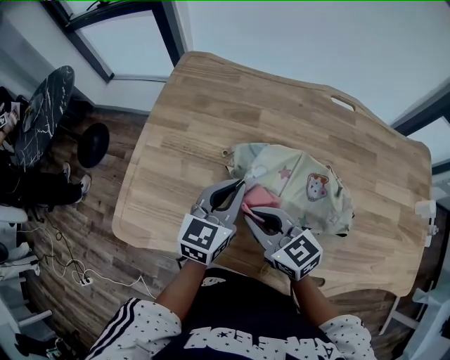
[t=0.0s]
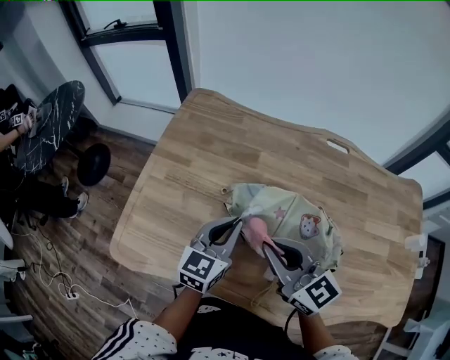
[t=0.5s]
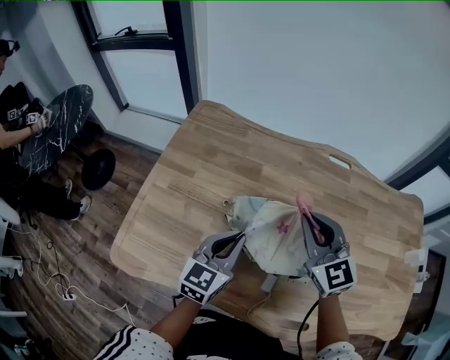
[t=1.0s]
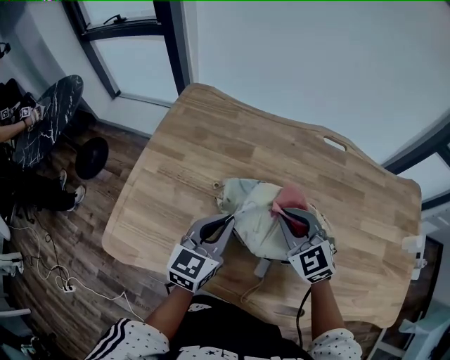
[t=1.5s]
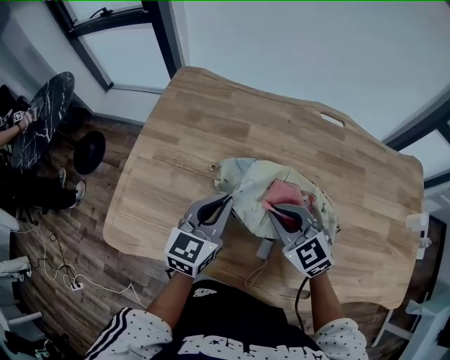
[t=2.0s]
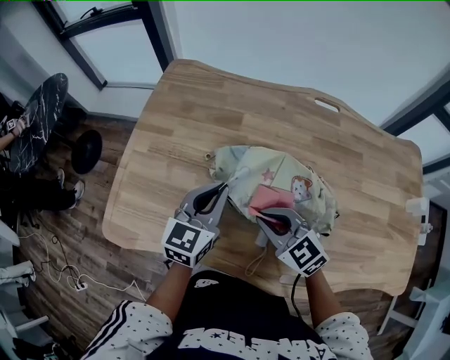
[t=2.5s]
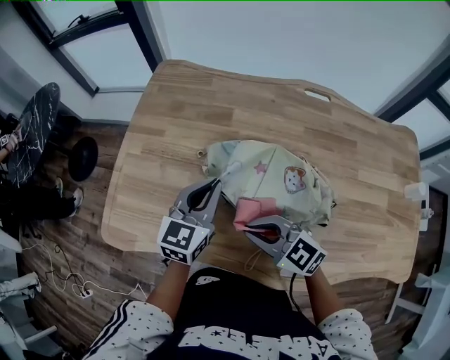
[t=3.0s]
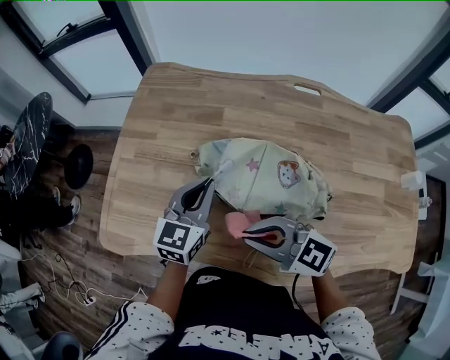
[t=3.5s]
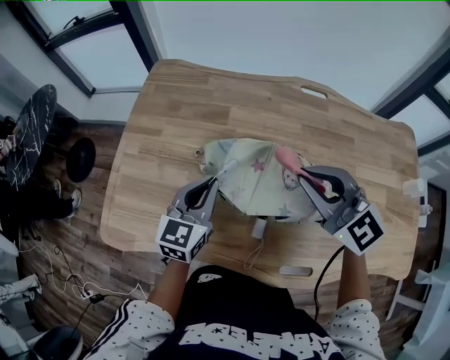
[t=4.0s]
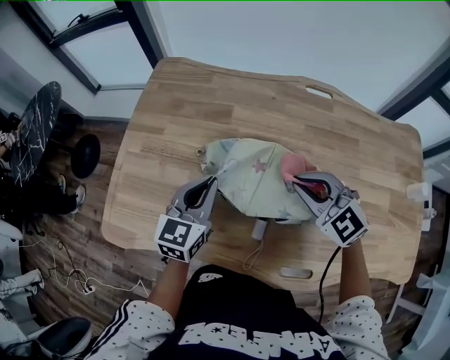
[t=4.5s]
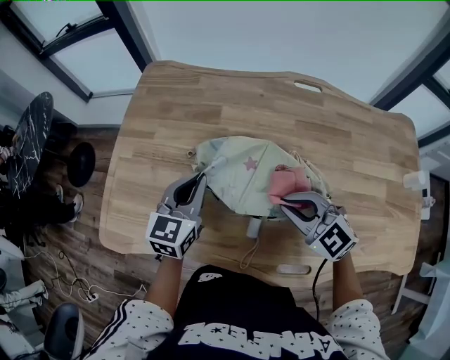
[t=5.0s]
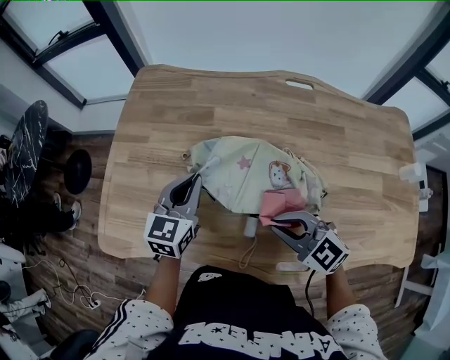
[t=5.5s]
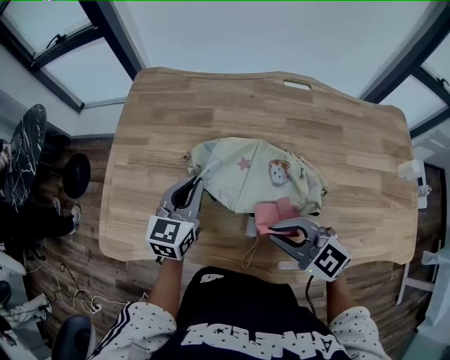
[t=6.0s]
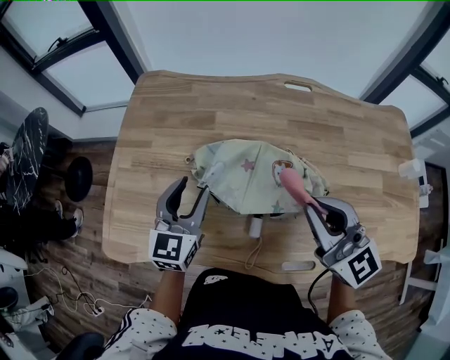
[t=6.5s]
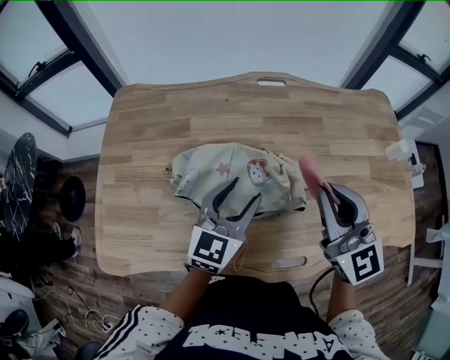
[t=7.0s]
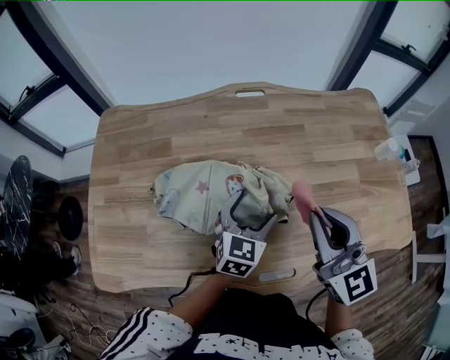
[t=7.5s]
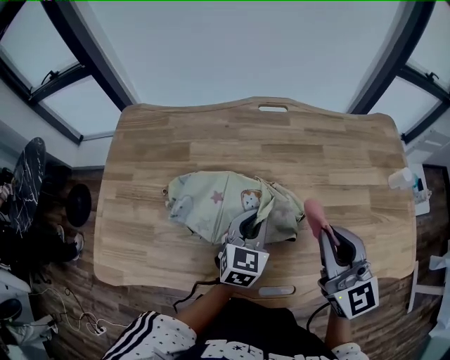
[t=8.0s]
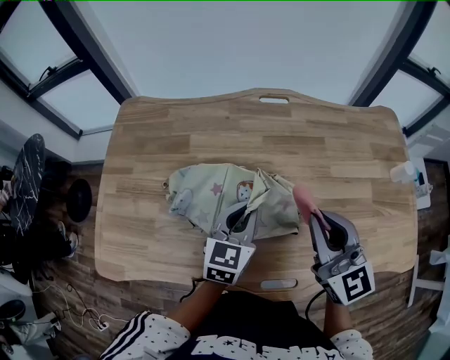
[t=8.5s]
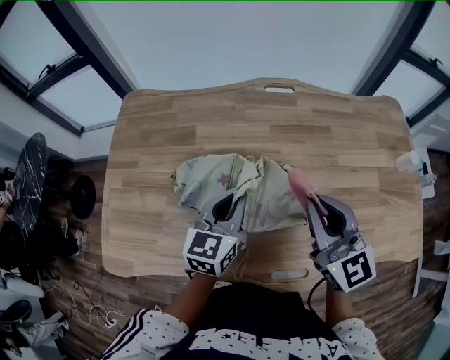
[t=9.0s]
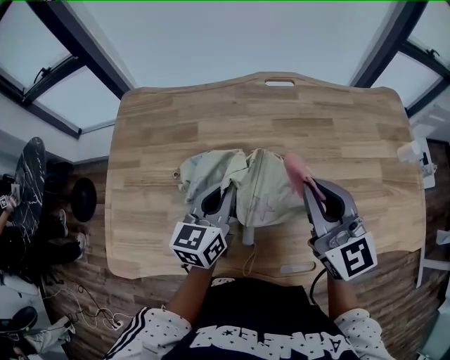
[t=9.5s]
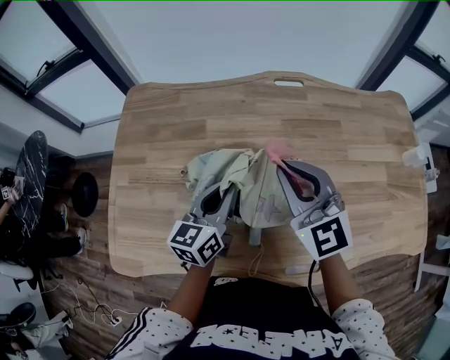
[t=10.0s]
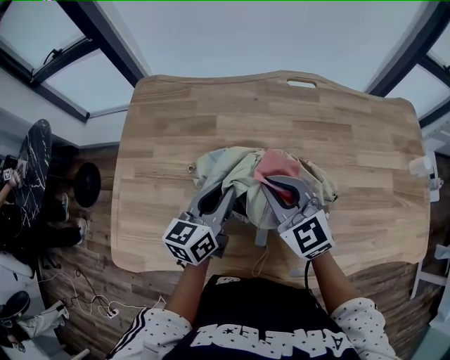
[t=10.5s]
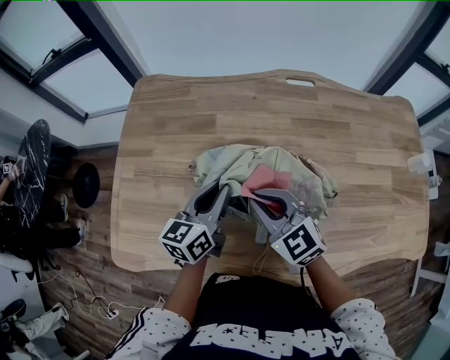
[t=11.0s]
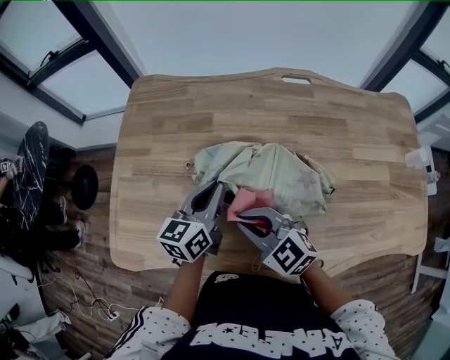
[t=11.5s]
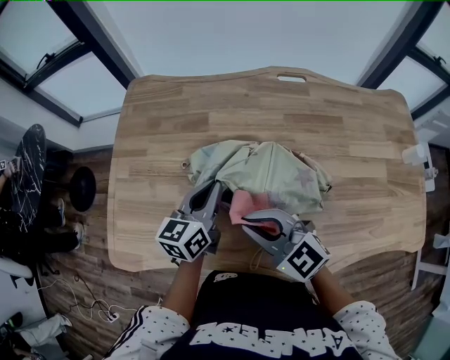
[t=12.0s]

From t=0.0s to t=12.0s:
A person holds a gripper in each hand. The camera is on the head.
From t=0.0s to t=2.0s: The right gripper is displaced to the right by approximately 10 cm, and rotates roughly 30 degrees.
From t=2.0s to t=4.0s: The right gripper goes about 15 cm upward and to the right.
From t=4.0s to t=6.0s: The right gripper shifts roughly 15 cm backward, downward and to the left.
From t=6.0s to t=8.0s: The right gripper shifts by some 20 cm, and swivels roughly 50 degrees. Meanwhile the left gripper ends up roughly 25 cm from where it was, and opens, then closes once more.
From t=8.0s to t=10.0s: The right gripper is displaced to the left and forward by approximately 20 cm, while the left gripper shifts roughly 15 cm to the left, and rotates approximately 30 degrees.
From t=10.0s to t=12.0s: The right gripper travels to the left, backward and downward by about 15 cm, and changes its angle by roughly 30 degrees.

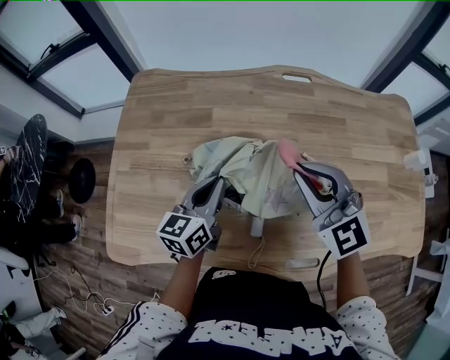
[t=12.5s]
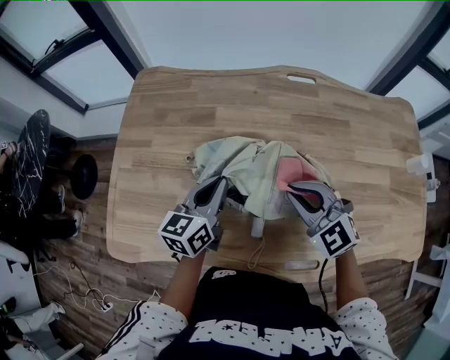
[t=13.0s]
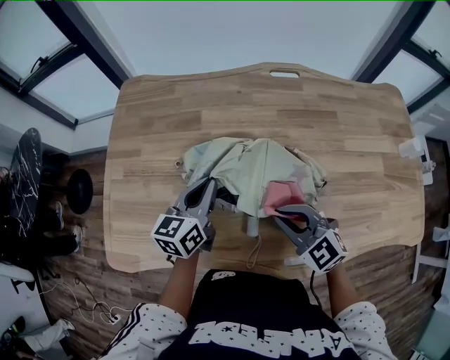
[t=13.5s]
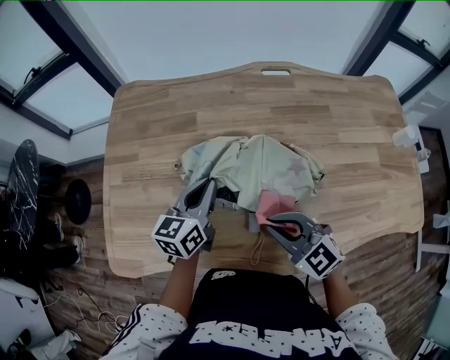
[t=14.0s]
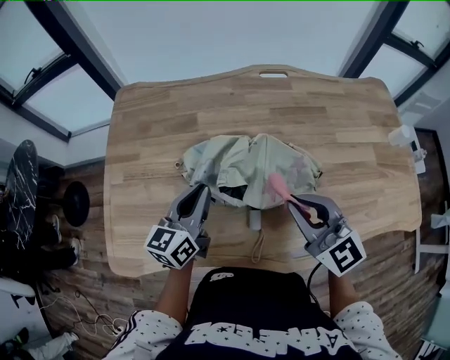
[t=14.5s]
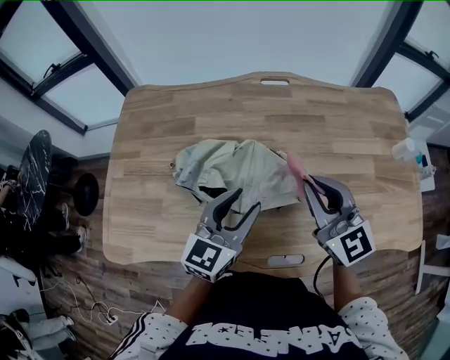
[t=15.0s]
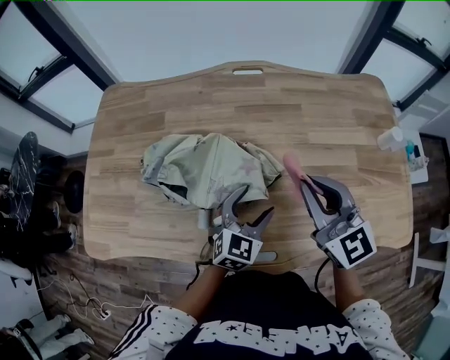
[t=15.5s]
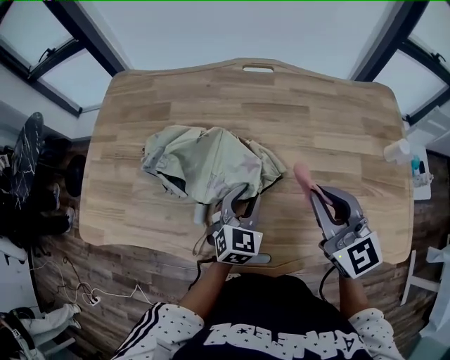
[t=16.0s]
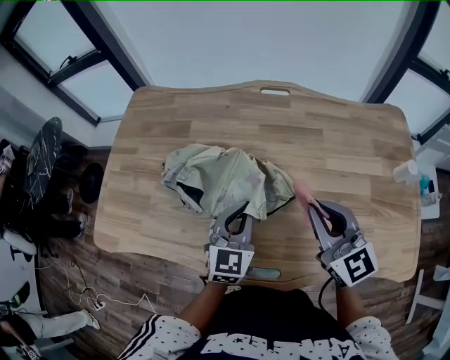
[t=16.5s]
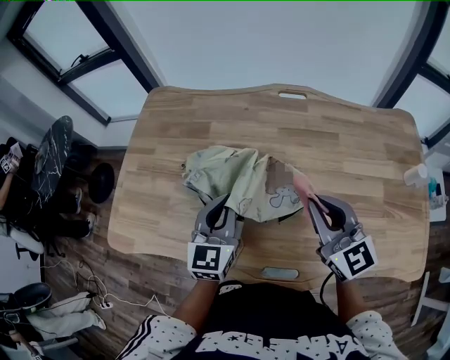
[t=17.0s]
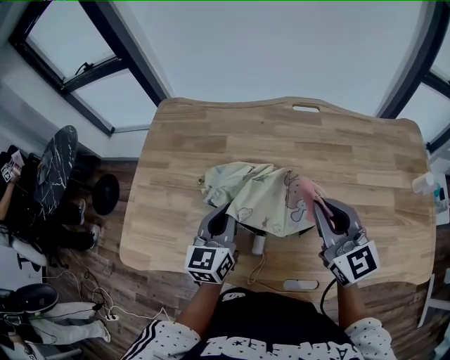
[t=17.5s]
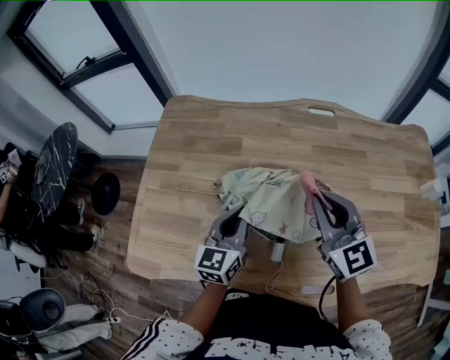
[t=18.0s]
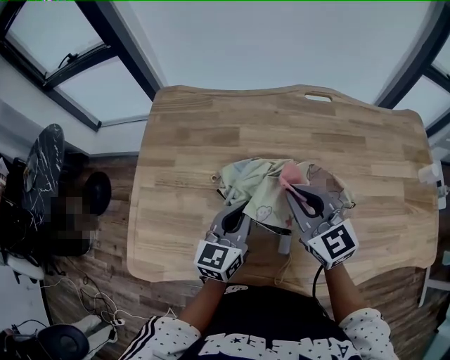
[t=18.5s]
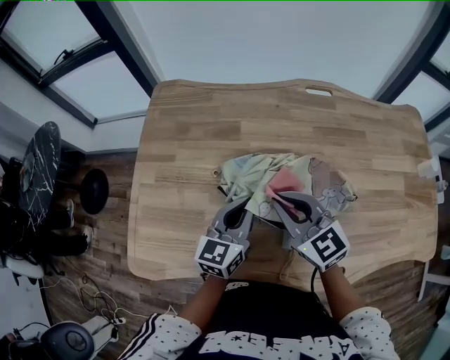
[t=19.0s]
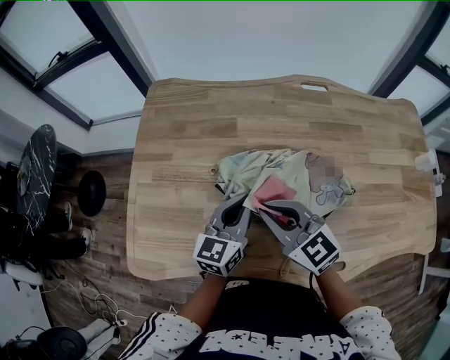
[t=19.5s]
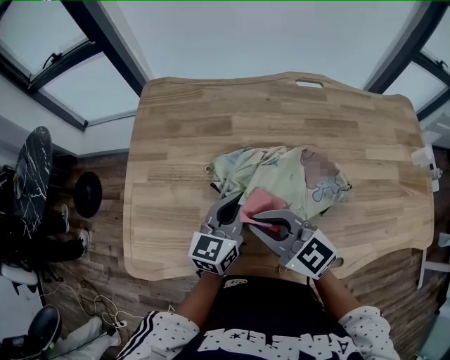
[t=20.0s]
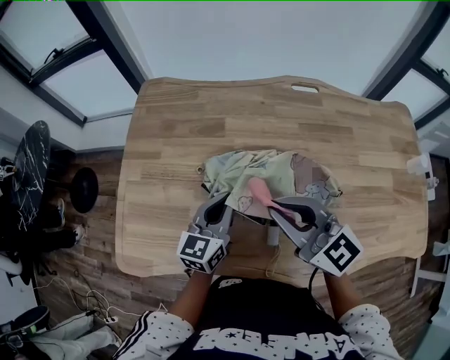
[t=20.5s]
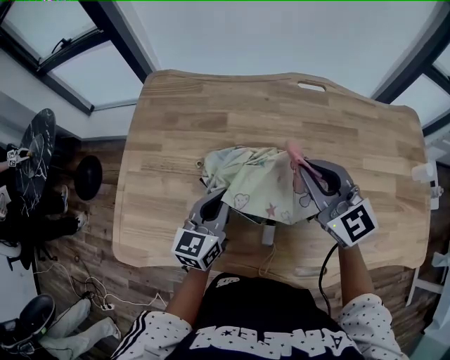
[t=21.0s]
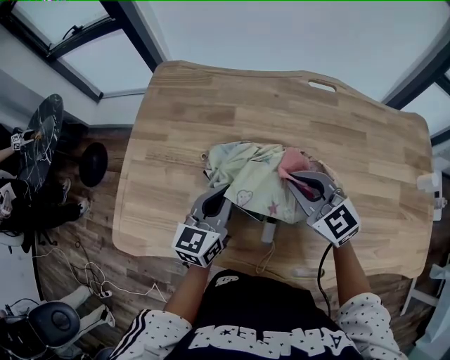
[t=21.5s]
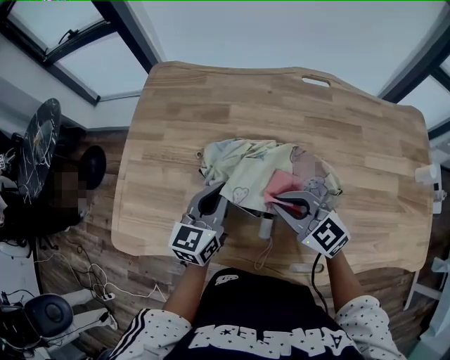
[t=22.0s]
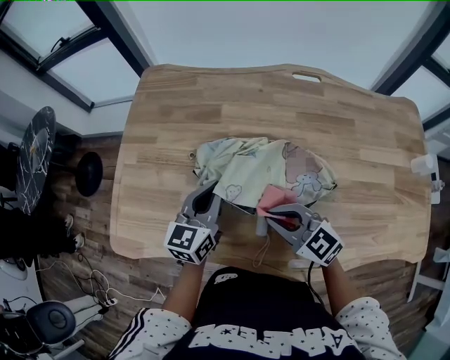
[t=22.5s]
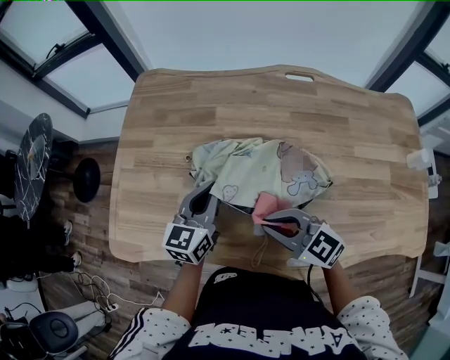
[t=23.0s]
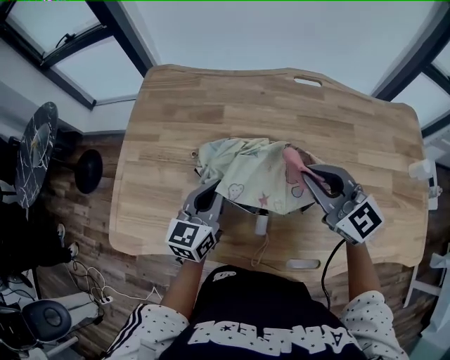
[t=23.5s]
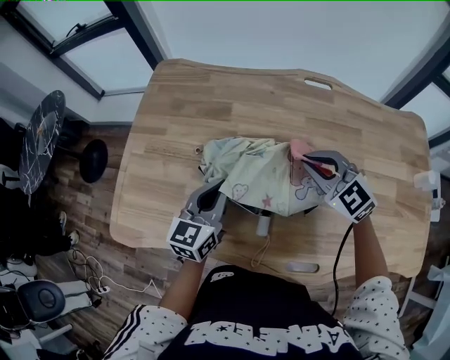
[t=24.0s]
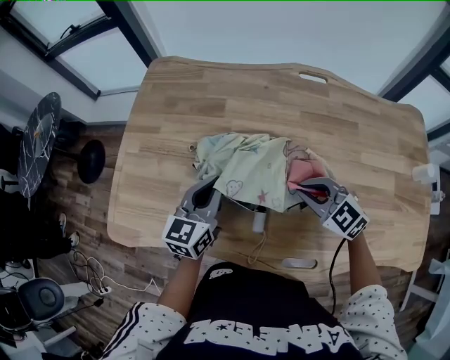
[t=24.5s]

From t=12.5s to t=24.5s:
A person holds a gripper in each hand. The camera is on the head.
From t=12.5s to t=14.5s: The right gripper shifts some 10 cm backward, goes downward and returns, roughly 15 cm each way, and turns by about 20 degrees.
From t=14.5s to t=16.5s: The two grippers go some 20 cm to the right. The left gripper swivels some 30 degrees, and opens, then closes once more.
From t=16.5s to t=18.5s: The left gripper goes approximately 20 cm to the left, and changes its angle by about 20 degrees, while the right gripper is displaced to the left and forward by approximately 25 cm.
From t=18.5s to t=20.5s: The right gripper is displaced backward by roughly 5 cm, and reaches some 10 cm to the left, then returns.
From t=20.5s to t=22.5s: The right gripper is displaced downward and backward by some 15 cm, and swivels approximately 20 degrees.
From t=22.5s to t=24.5s: The right gripper goes roughly 10 cm to the right, and goes upward and returns, roughly 10 cm each way.

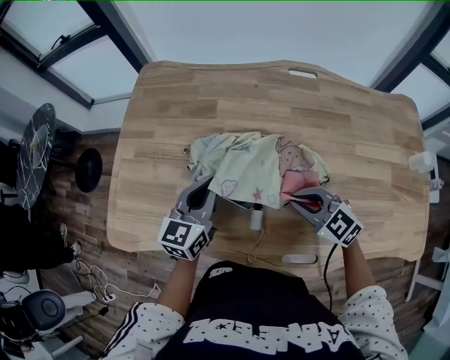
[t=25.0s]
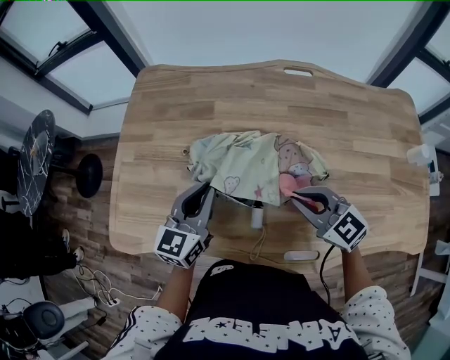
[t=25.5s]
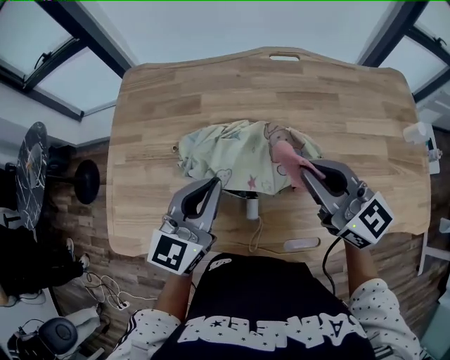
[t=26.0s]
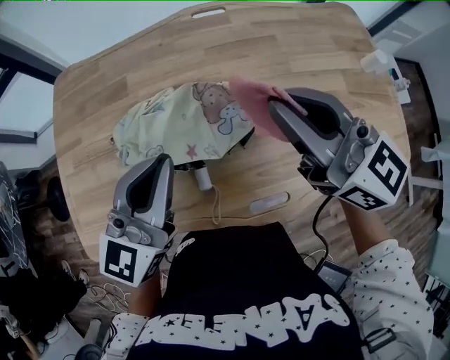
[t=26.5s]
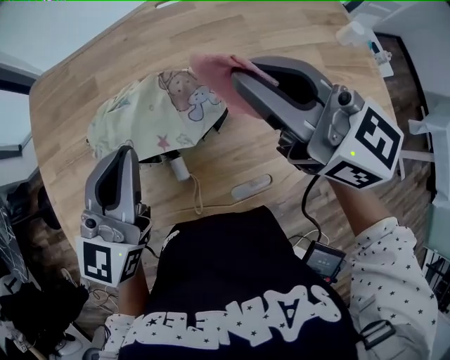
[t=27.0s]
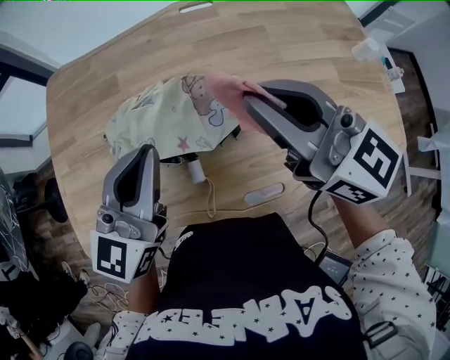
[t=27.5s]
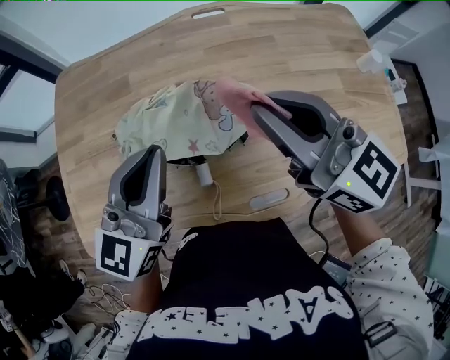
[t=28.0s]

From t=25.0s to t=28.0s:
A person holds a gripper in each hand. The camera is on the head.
From t=25.0s to t=26.5s: The right gripper heads upward, covering roughly 25 cm, and tilts its fingers about 30 degrees upward, while the left gripper heads upward, to the right and backward, covering about 15 cm, and turns by approximately 30 degrees.
From t=26.5s to t=28.0s: The grippers move only a little.
